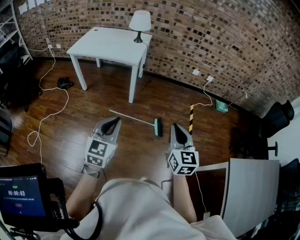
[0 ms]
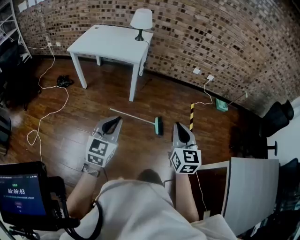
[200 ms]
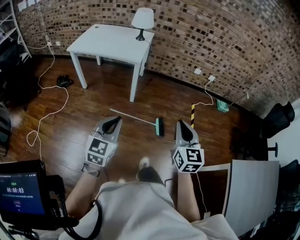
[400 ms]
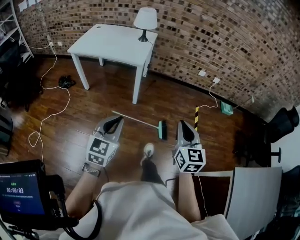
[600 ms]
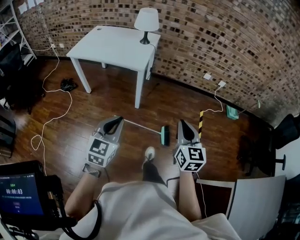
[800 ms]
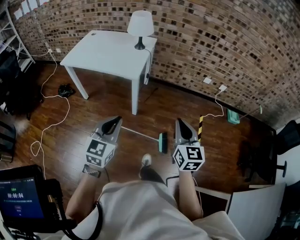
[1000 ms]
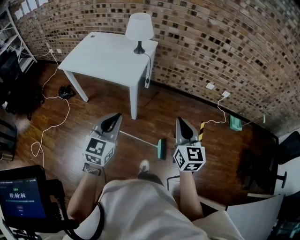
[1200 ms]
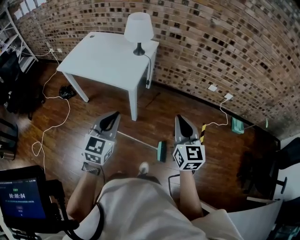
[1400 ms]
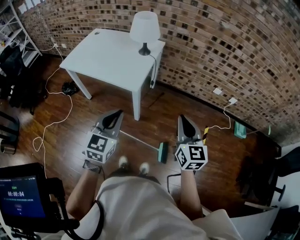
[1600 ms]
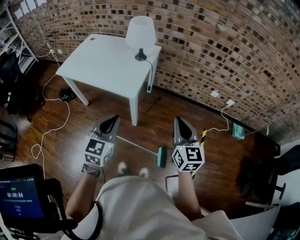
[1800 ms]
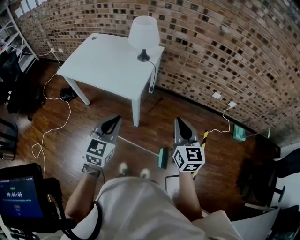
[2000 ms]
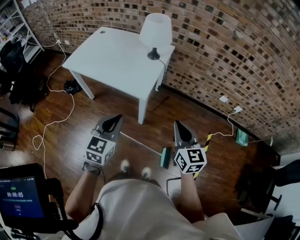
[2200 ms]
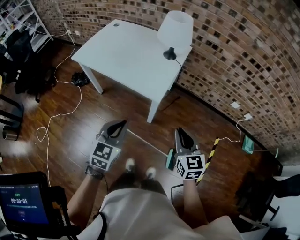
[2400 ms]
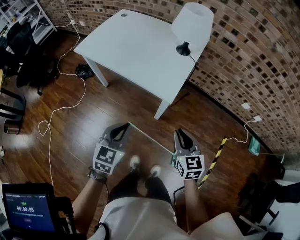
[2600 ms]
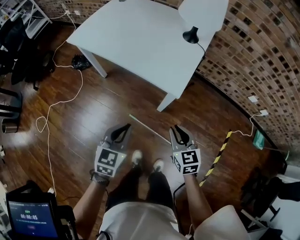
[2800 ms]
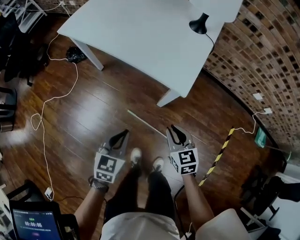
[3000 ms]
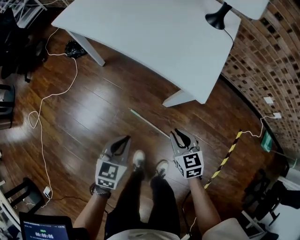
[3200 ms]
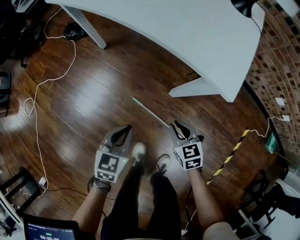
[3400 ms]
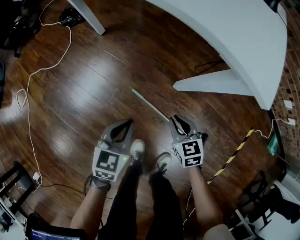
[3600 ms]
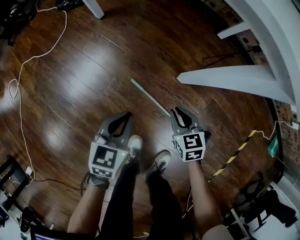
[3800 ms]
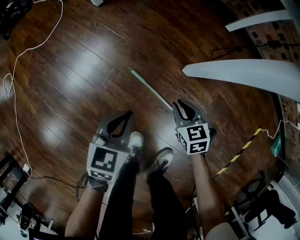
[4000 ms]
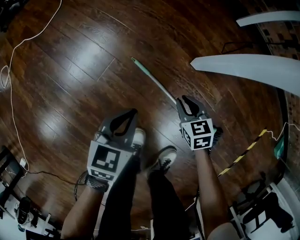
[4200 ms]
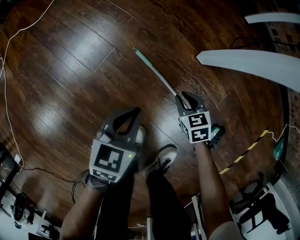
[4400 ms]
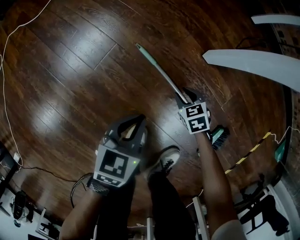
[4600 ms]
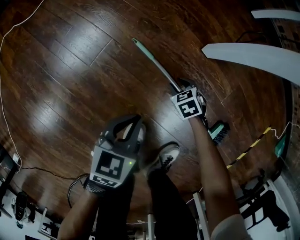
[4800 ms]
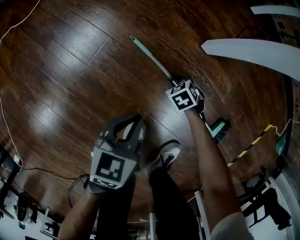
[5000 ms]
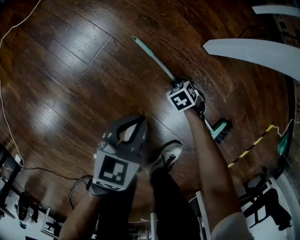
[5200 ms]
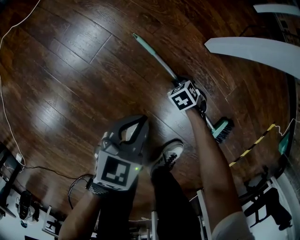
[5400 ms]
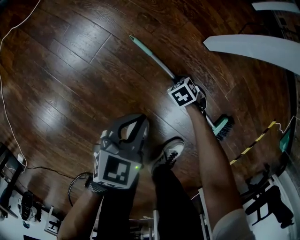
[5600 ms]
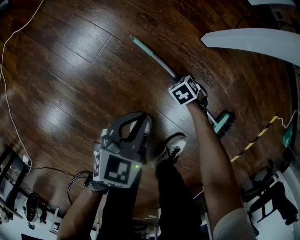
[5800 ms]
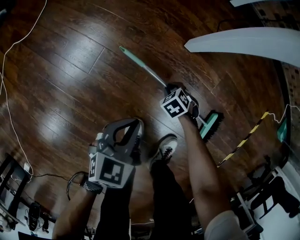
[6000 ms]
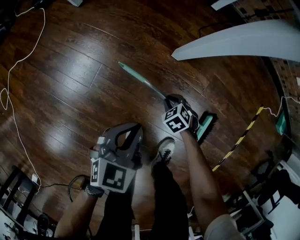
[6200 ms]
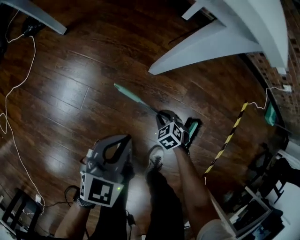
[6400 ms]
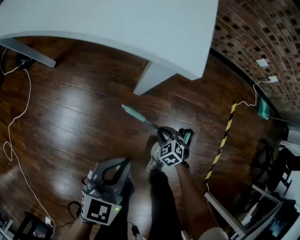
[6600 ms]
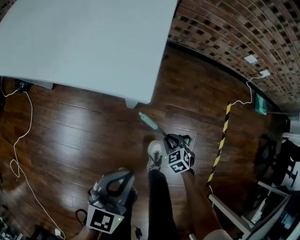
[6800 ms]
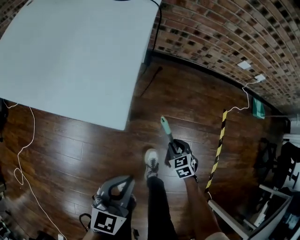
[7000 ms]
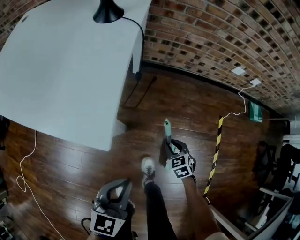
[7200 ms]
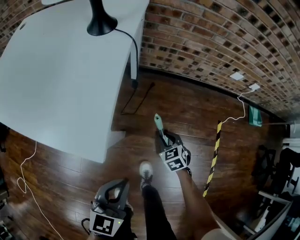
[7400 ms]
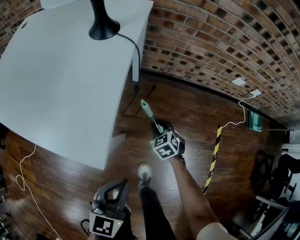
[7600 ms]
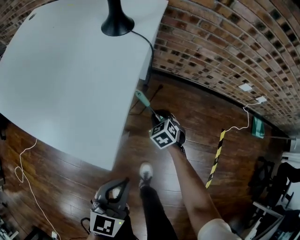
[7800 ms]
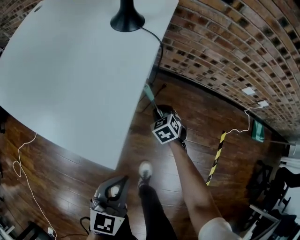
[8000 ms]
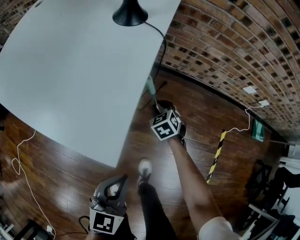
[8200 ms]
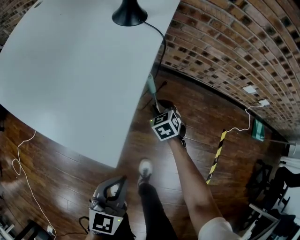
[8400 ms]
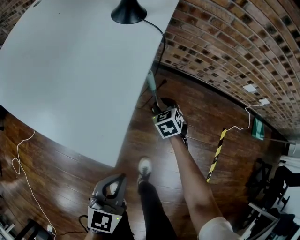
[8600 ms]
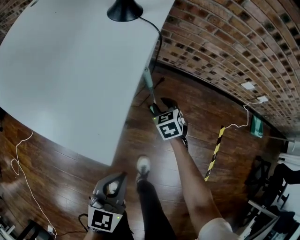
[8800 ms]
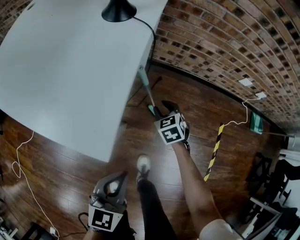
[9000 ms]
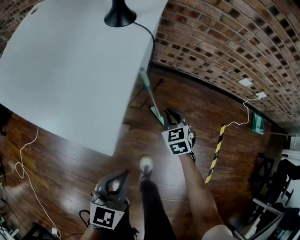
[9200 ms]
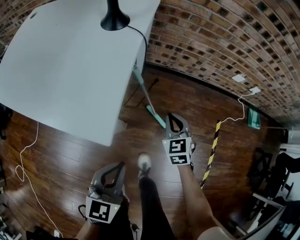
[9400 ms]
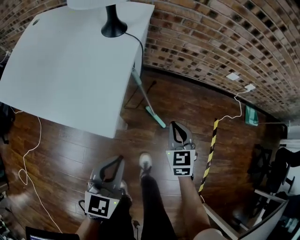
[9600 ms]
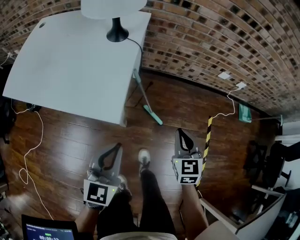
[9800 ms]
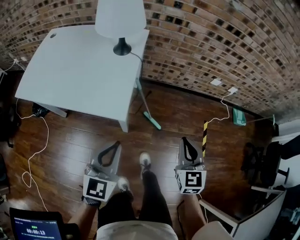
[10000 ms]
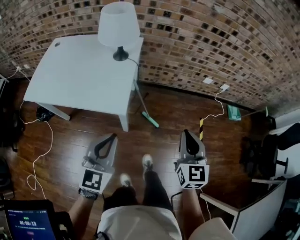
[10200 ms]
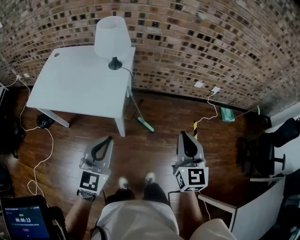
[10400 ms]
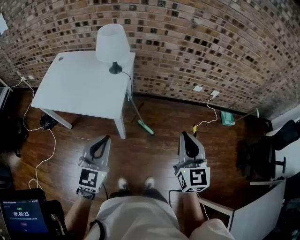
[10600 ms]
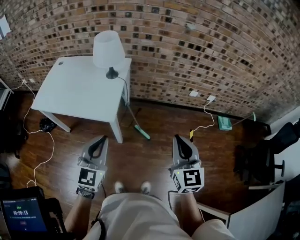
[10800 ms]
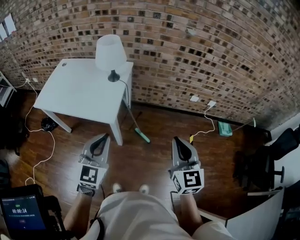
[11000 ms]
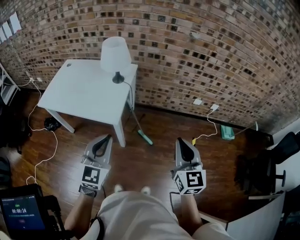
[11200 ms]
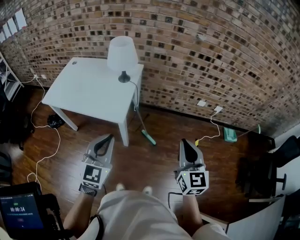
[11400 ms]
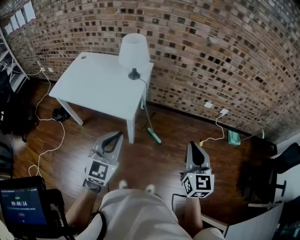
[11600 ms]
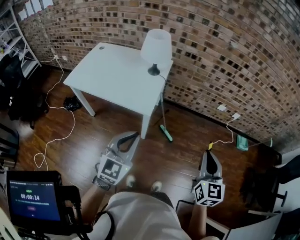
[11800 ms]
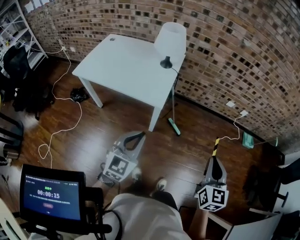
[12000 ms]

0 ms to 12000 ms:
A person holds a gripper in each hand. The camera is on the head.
0 ms to 1600 ms: The pair of grippers is taken forward, some 40 cm.
1600 ms to 3000 ms: Both grippers move downward and to the left, some 40 cm. The right gripper turns by some 40 degrees, while the left gripper turns by approximately 30 degrees.
3000 ms to 4400 ms: The two grippers go roughly 50 cm downward. The right gripper rotates approximately 30 degrees.
4400 ms to 6000 ms: The left gripper shifts by some 5 cm, and swivels some 20 degrees, while the right gripper shifts roughly 5 cm downward, and swivels roughly 20 degrees.
6000 ms to 7600 ms: The left gripper travels upward by roughly 35 cm, and swivels roughly 30 degrees. The right gripper changes place by roughly 50 cm, and turns by some 40 degrees.
9000 ms to 10400 ms: The left gripper moves upward, about 35 cm. Meanwhile the right gripper travels upward and backward by approximately 70 cm, tips its fingers upward by some 40 degrees, and closes its fingers.
10400 ms to 12000 ms: The grippers both shift backward by roughly 10 cm.

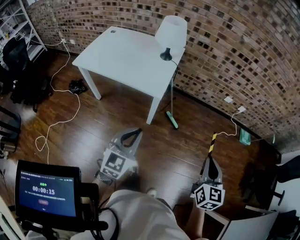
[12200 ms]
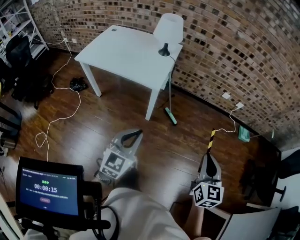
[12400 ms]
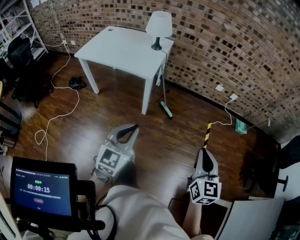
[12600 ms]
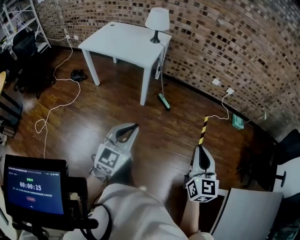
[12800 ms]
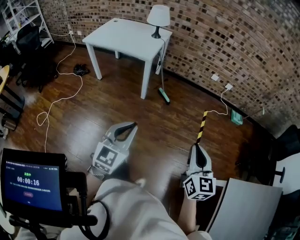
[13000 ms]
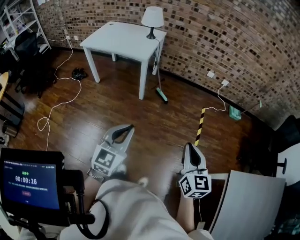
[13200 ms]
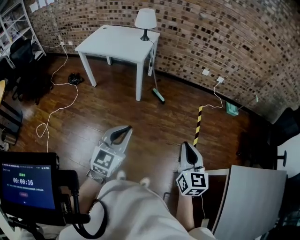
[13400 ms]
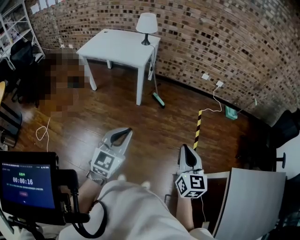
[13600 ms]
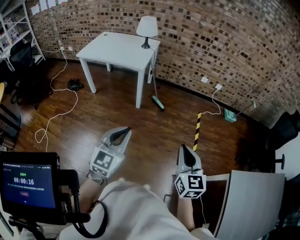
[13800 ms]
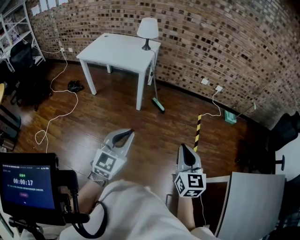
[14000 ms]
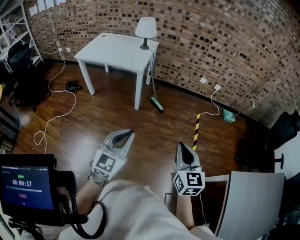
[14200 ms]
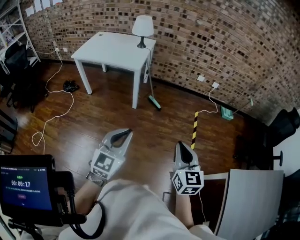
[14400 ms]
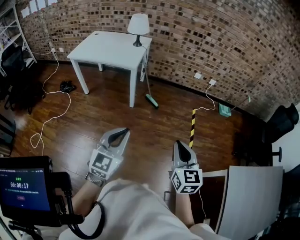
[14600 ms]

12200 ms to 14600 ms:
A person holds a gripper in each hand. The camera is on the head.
12200 ms to 13400 ms: Both grippers are carried backward, some 40 cm.
13400 ms to 14600 ms: The right gripper shifts roughly 5 cm to the left.

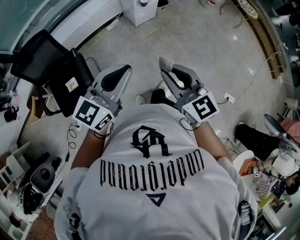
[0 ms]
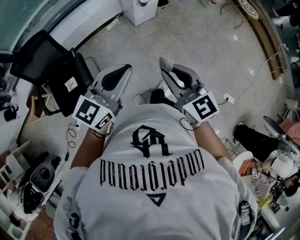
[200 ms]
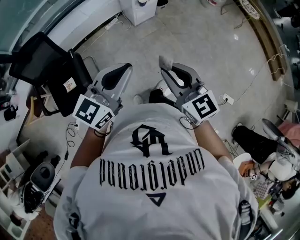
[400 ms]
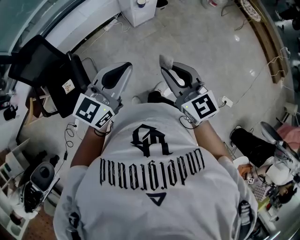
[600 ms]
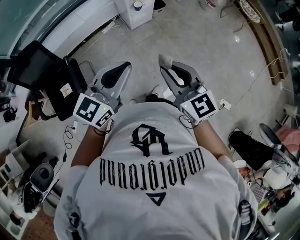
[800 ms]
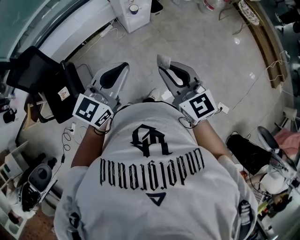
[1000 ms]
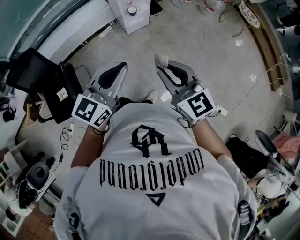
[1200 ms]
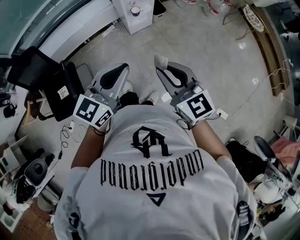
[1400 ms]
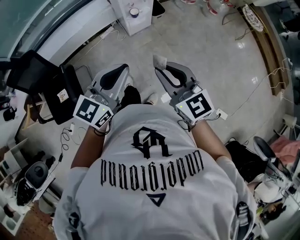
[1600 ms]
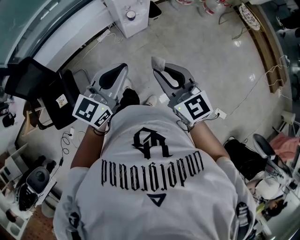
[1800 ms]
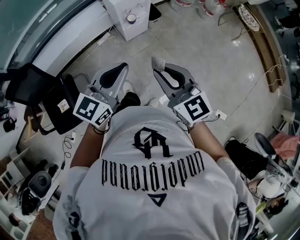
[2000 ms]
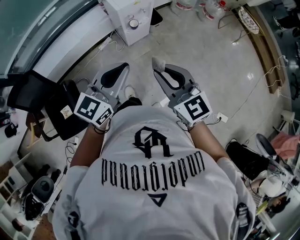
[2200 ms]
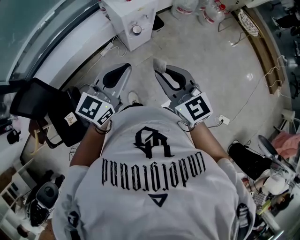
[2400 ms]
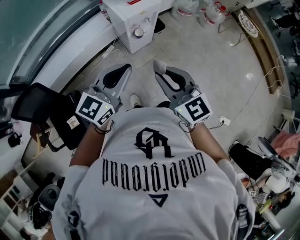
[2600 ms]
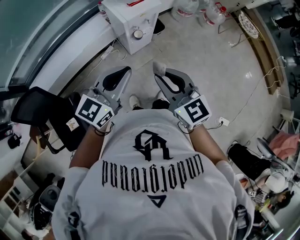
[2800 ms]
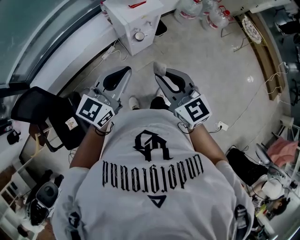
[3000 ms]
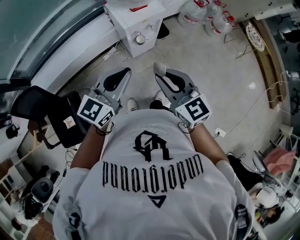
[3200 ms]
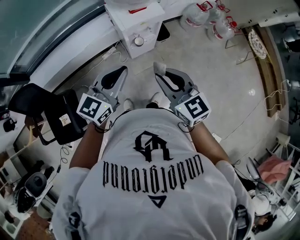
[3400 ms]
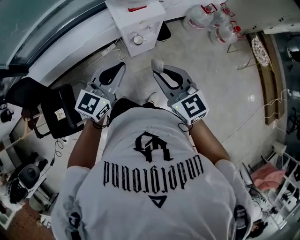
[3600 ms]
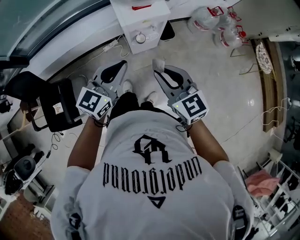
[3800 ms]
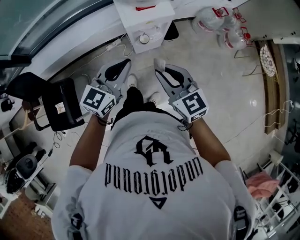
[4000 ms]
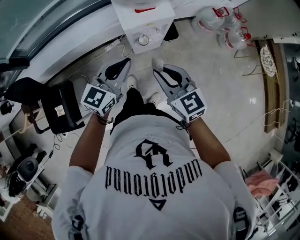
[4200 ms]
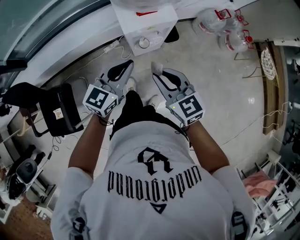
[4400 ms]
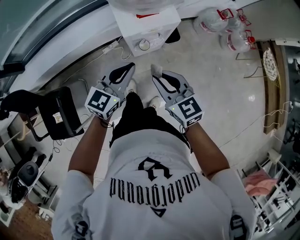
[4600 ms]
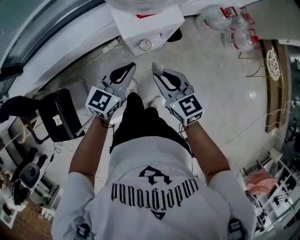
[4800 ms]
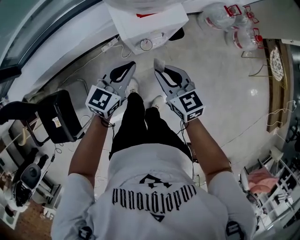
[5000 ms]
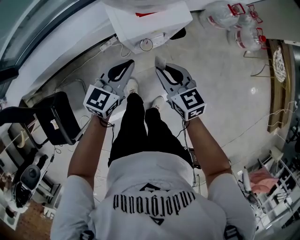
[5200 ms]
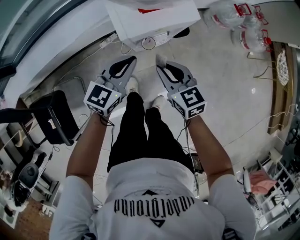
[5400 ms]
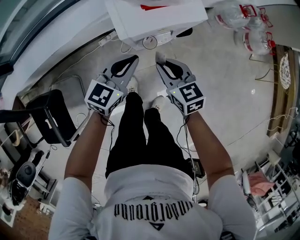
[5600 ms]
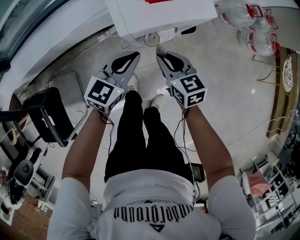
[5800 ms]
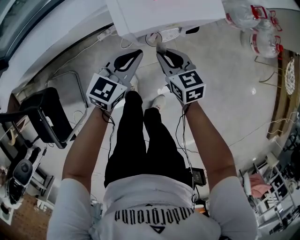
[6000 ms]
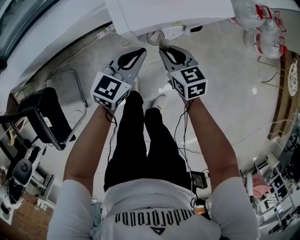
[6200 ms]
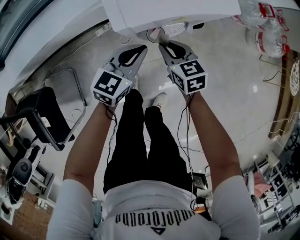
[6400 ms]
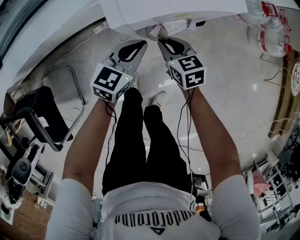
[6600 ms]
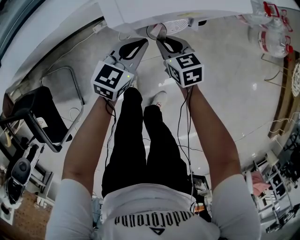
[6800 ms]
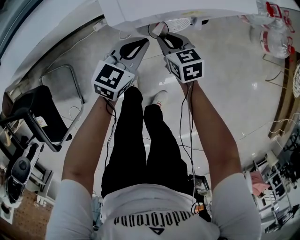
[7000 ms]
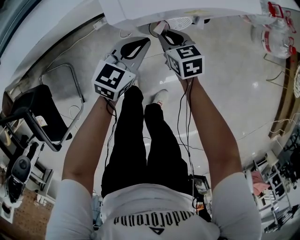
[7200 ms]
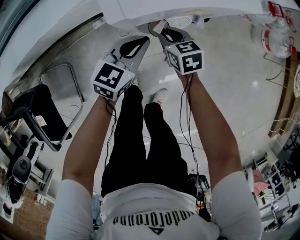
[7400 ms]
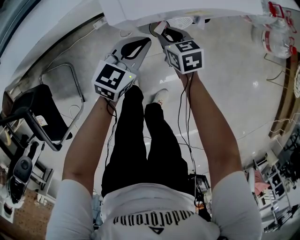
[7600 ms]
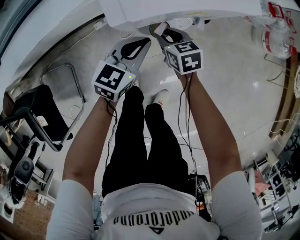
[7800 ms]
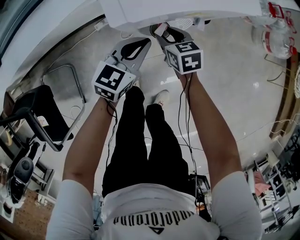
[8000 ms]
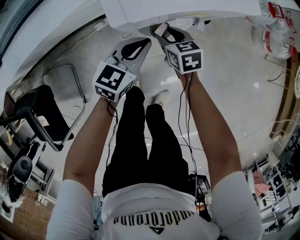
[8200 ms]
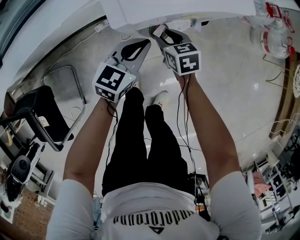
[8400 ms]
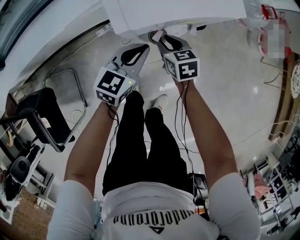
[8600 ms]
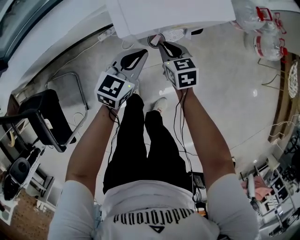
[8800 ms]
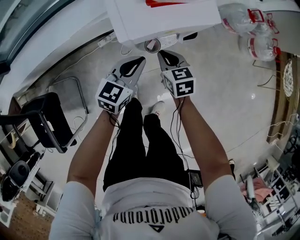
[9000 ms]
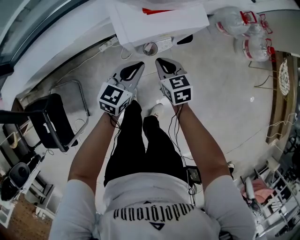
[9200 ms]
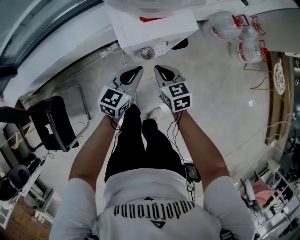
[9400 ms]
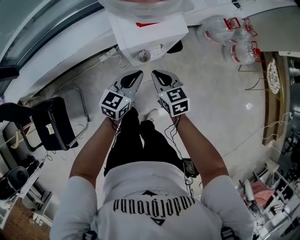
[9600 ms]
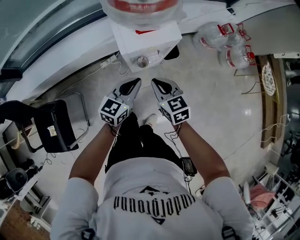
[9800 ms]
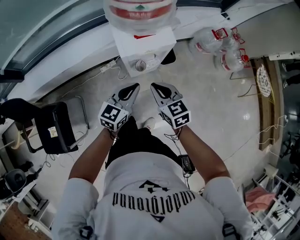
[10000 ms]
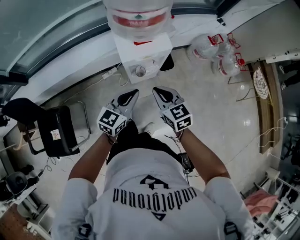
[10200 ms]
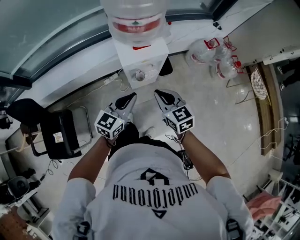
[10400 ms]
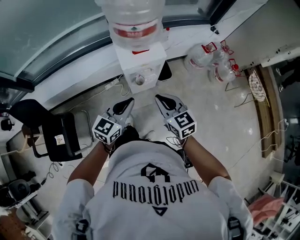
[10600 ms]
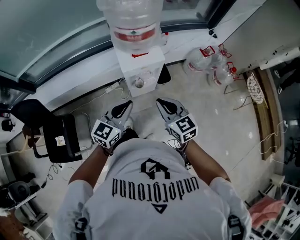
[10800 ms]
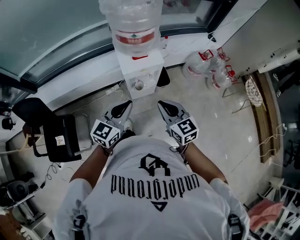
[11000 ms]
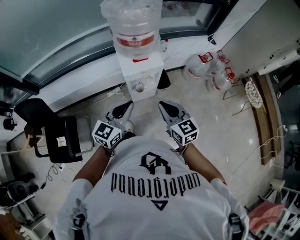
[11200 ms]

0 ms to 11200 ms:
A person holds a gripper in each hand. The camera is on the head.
0 ms to 1600 ms: Both grippers move forward and to the right, roughly 20 cm.
1600 ms to 3200 ms: The two grippers go some 20 cm forward.
3200 ms to 4800 ms: Both grippers move forward and downward, some 25 cm.
4800 ms to 6400 ms: The right gripper is displaced downward and forward by roughly 35 cm; the left gripper is displaced downward by roughly 30 cm.
6400 ms to 8000 ms: The right gripper is displaced downward by roughly 10 cm.
8000 ms to 9600 ms: The grippers both shift upward by some 25 cm. The right gripper closes up.
9600 ms to 11200 ms: The two grippers go roughly 35 cm upward and backward.
